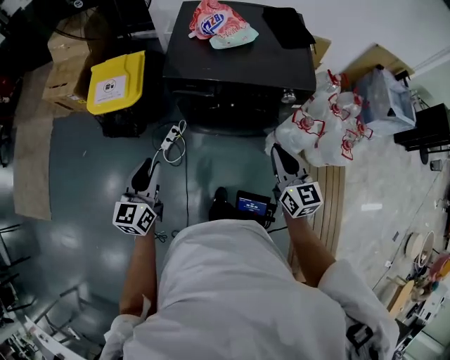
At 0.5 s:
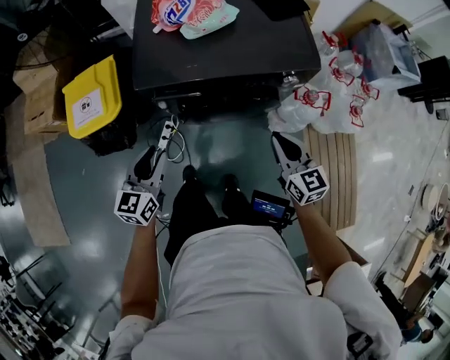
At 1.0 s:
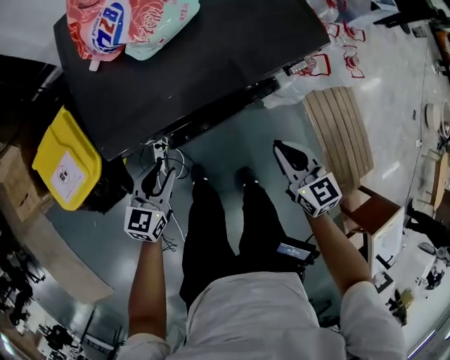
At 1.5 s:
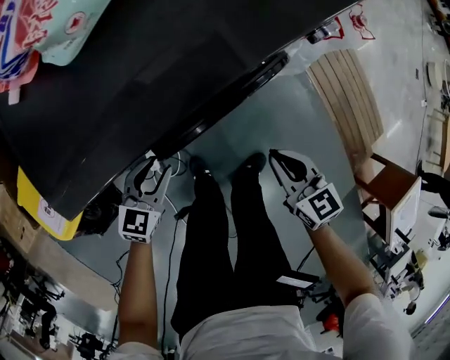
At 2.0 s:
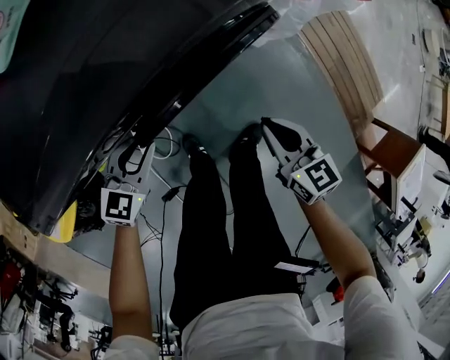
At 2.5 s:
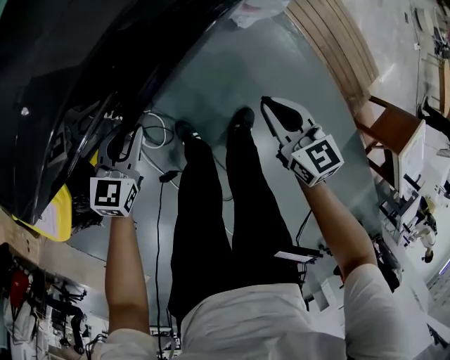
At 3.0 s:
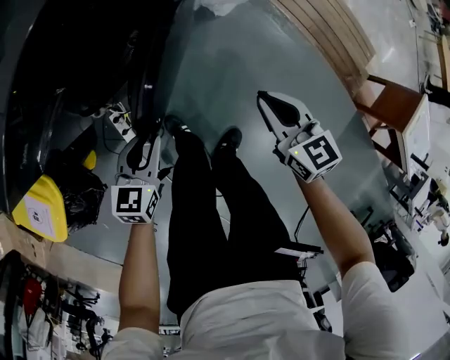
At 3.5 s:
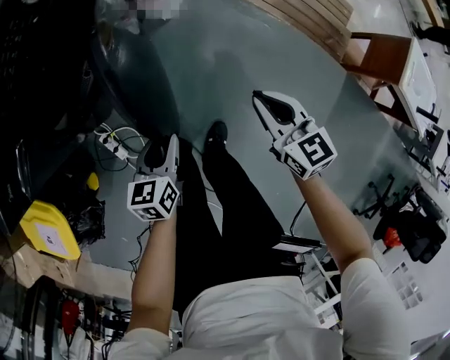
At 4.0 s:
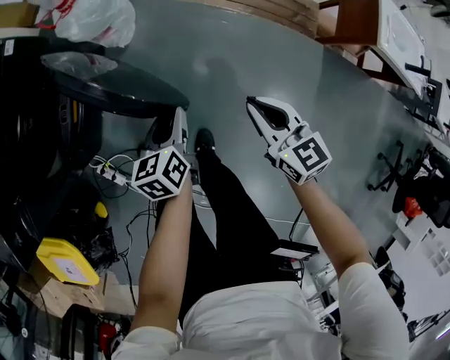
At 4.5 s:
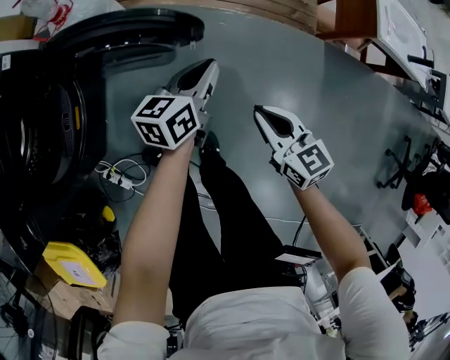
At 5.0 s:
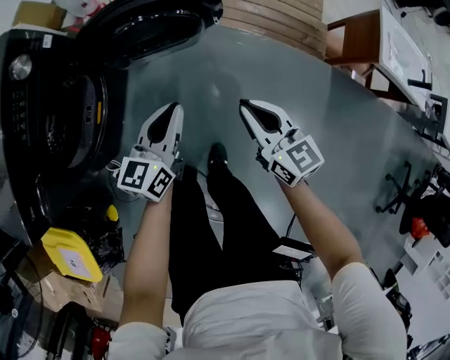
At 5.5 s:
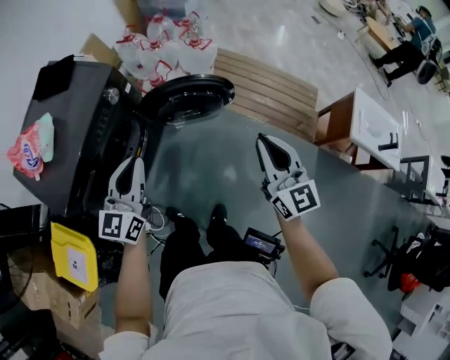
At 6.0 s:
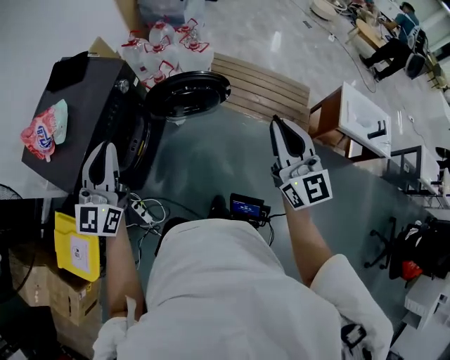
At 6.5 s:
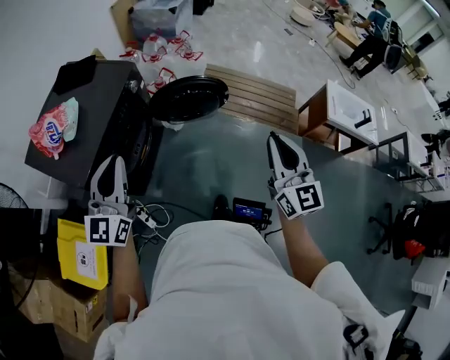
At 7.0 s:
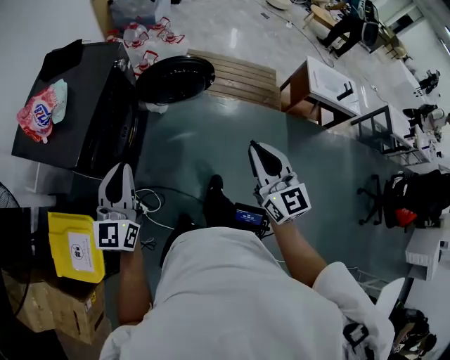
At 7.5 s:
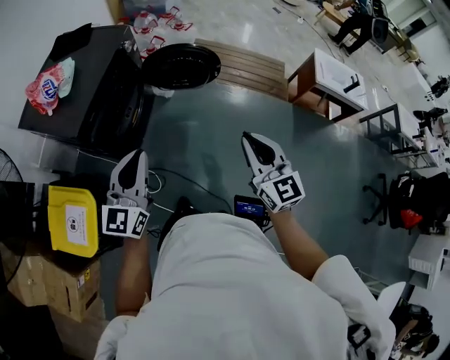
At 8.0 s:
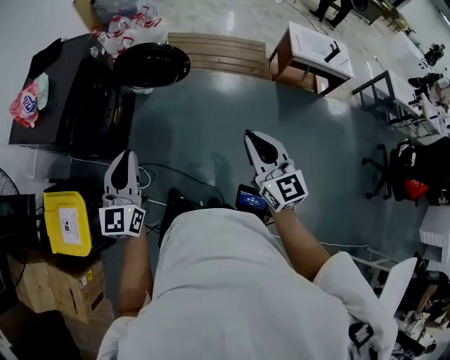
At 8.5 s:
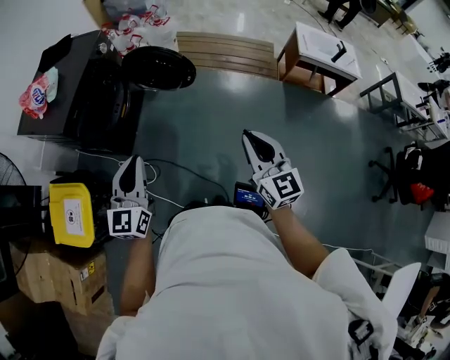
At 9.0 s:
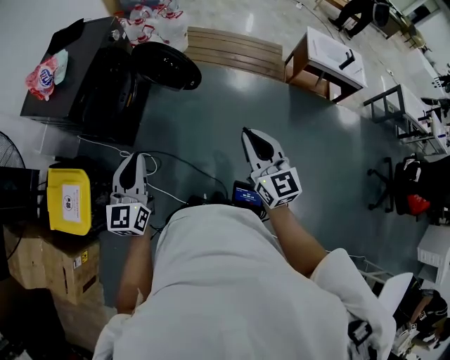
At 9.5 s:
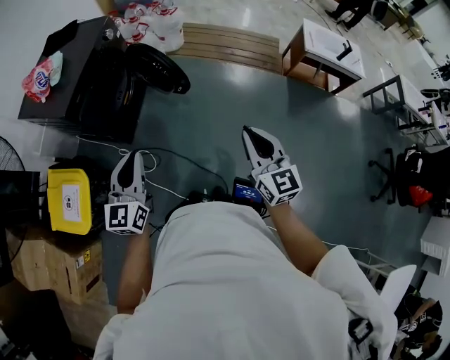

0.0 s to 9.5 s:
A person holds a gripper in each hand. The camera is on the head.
0.0 to 2.0 s: The grippers both shift downward by about 35 cm. The left gripper turns by about 70 degrees. Meanwhile the right gripper rotates roughly 40 degrees.
2.0 to 4.0 s: The pair of grippers is taken about 40 cm. The right gripper turns by about 30 degrees. Meanwhile the left gripper turns by about 30 degrees.
4.0 to 5.5 s: Both grippers travel together upward, roughly 40 cm. The left gripper points its fingers about 30 degrees further upward, and closes up. The right gripper tilts its fingers roughly 30 degrees upward.
5.5 to 7.5 s: The grippers both shift backward by some 40 cm.
7.5 to 9.5 s: Both grippers move backward and to the right, approximately 15 cm.

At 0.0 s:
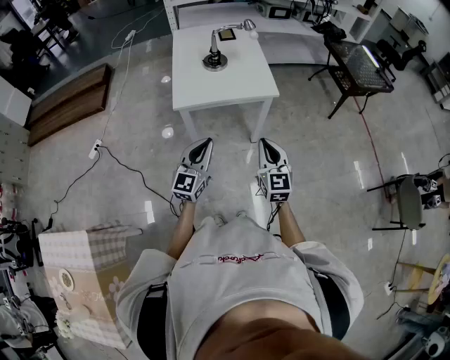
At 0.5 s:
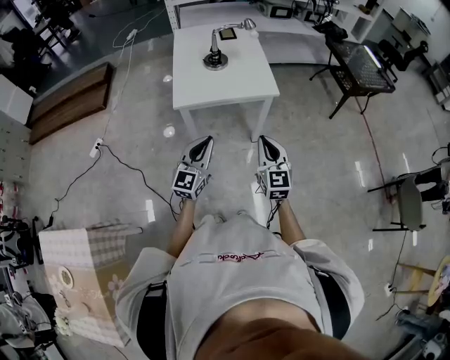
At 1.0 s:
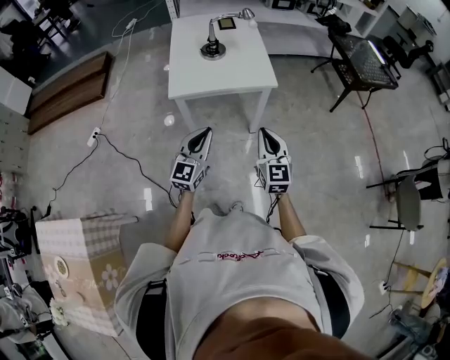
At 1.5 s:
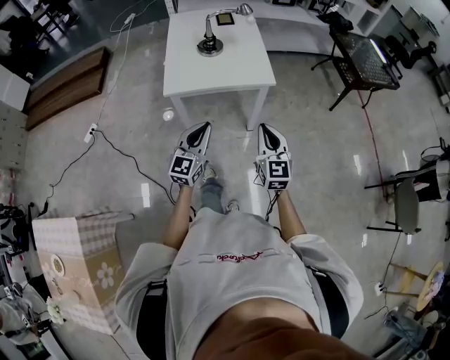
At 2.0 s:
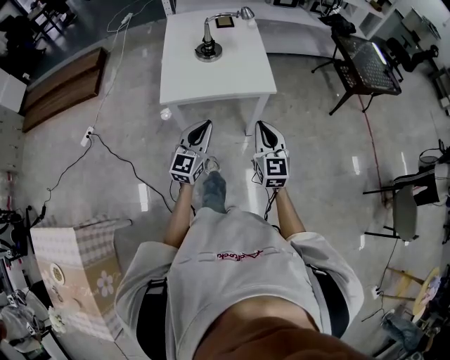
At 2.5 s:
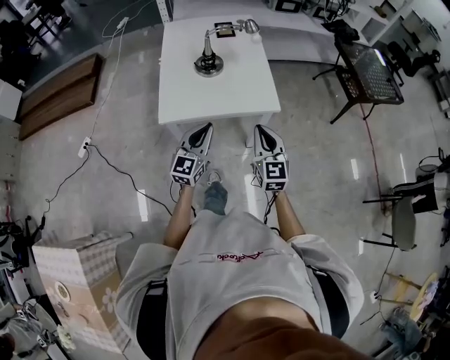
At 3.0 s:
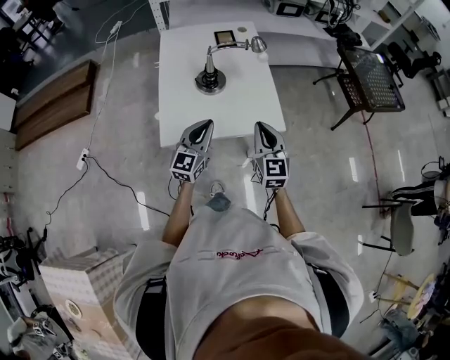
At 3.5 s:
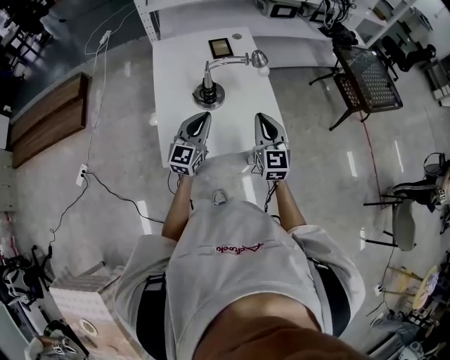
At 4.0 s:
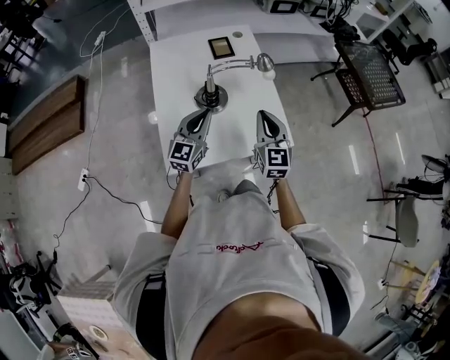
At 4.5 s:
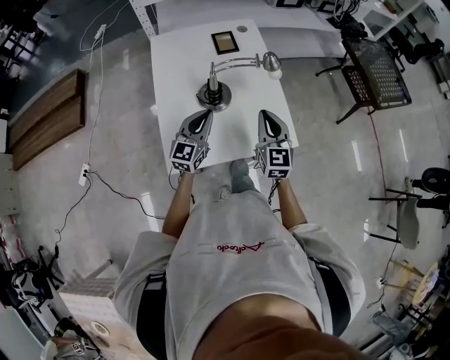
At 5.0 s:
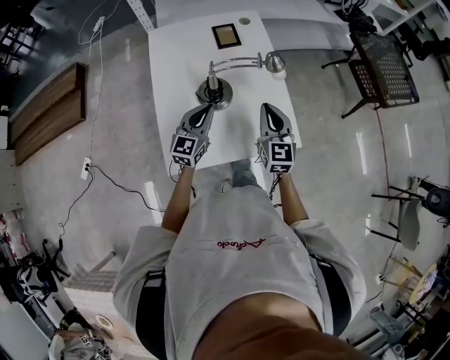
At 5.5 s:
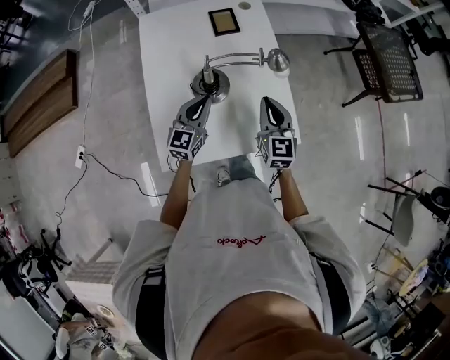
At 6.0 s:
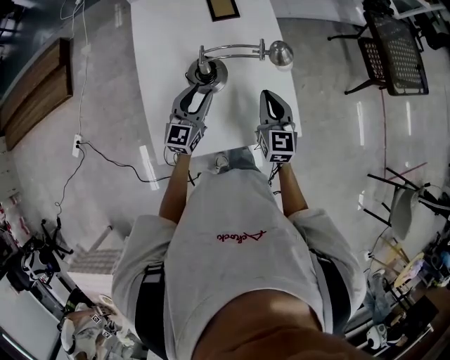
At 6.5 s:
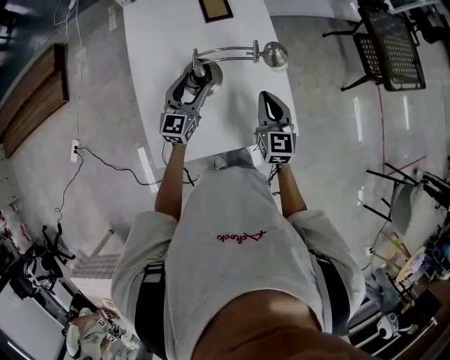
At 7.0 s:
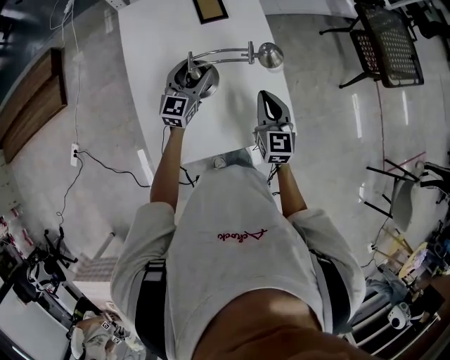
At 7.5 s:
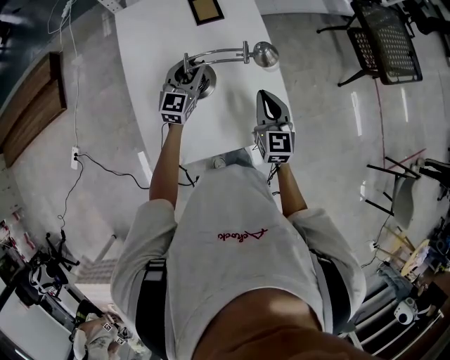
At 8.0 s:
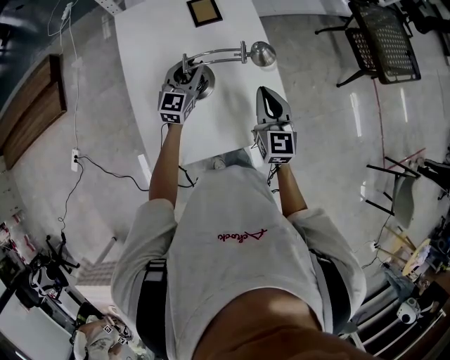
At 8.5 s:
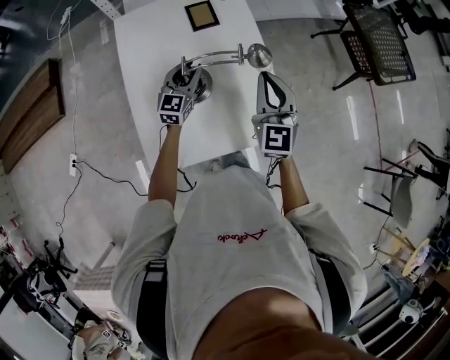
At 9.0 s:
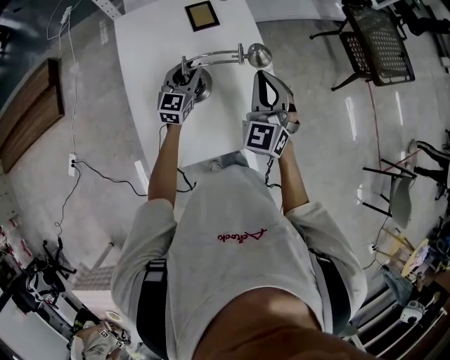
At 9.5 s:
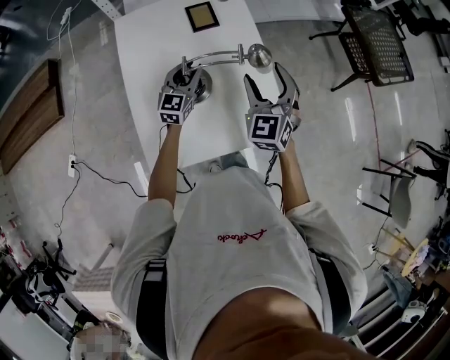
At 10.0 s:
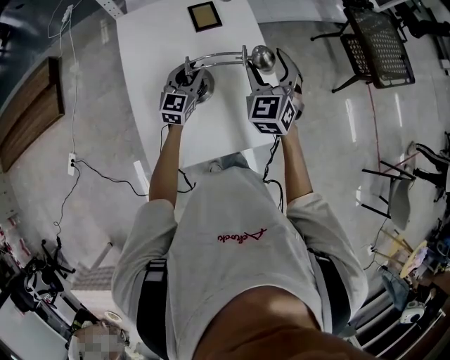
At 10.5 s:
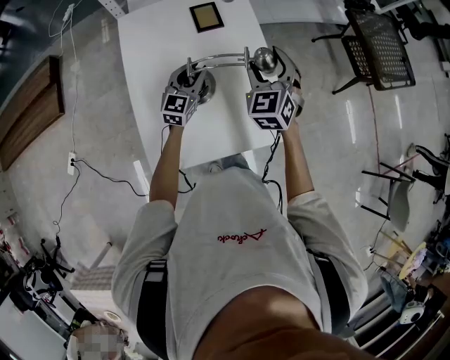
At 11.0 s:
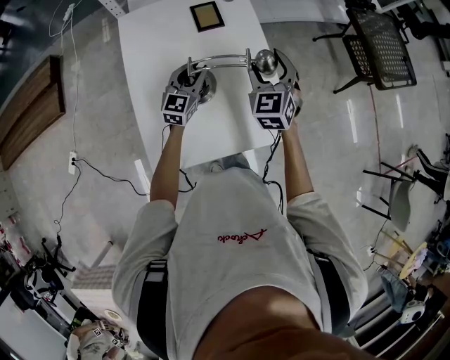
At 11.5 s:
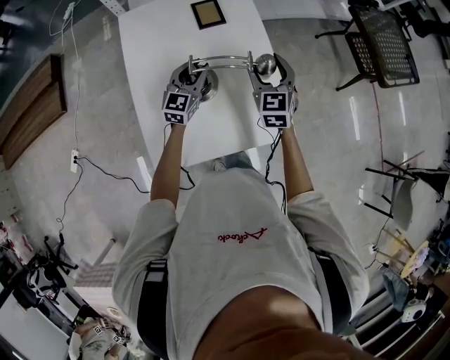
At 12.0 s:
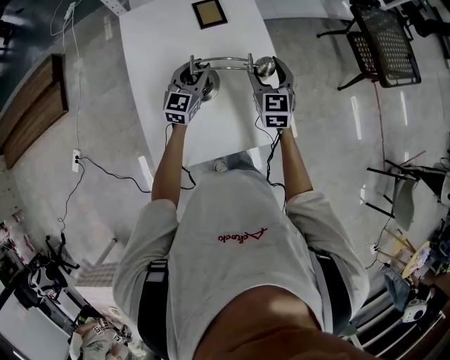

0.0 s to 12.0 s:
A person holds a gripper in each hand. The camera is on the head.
0.0 to 2.0 s: Both grippers travel together forward, roughly 10 cm.
2.0 to 4.0 s: The two grippers go some 30 cm forward.
4.0 to 6.0 s: The two grippers go approximately 10 cm downward and forward. The left gripper opens.
6.0 to 8.0 s: The left gripper is displaced forward by approximately 10 cm, and opens, then closes once more.
8.0 to 10.0 s: The right gripper travels forward and upward by about 10 cm, changes its angle by roughly 30 degrees, and opens up.
10.0 to 12.0 s: The right gripper moves downward, about 10 cm, and turns by approximately 20 degrees.

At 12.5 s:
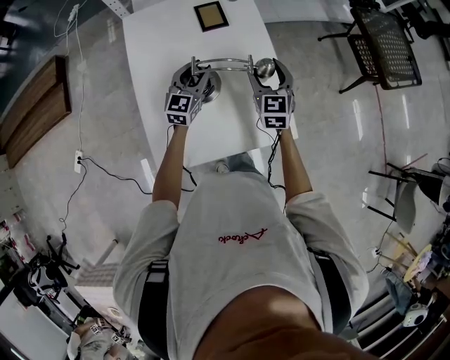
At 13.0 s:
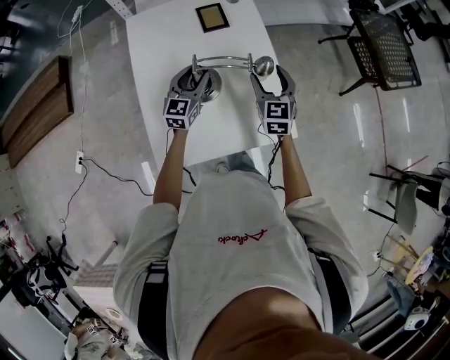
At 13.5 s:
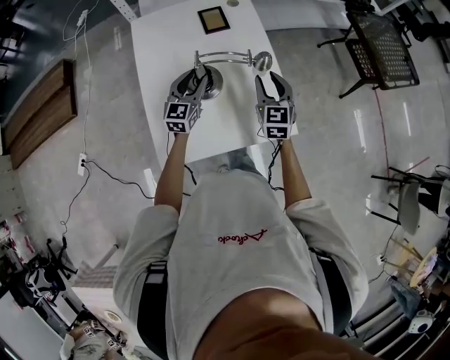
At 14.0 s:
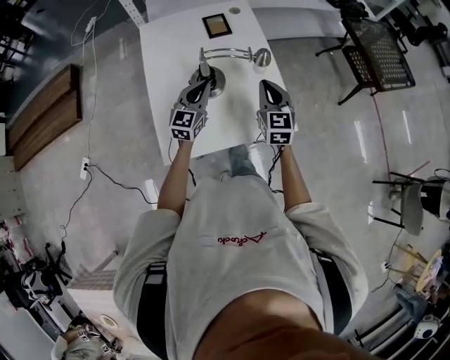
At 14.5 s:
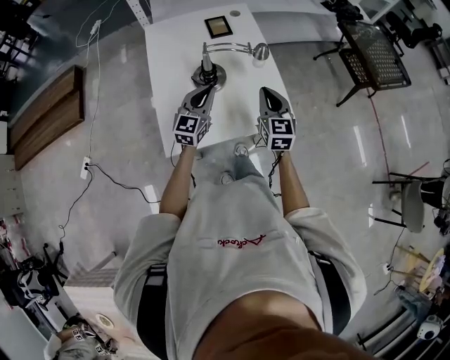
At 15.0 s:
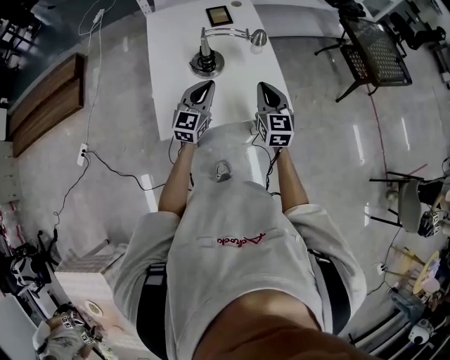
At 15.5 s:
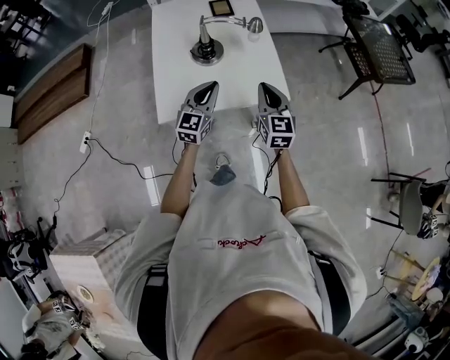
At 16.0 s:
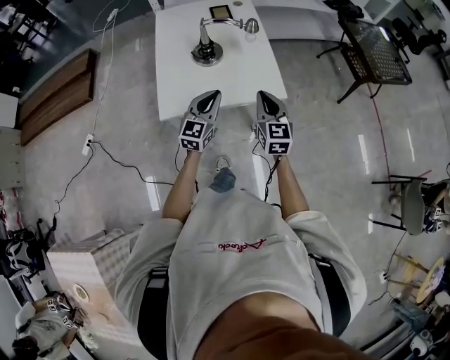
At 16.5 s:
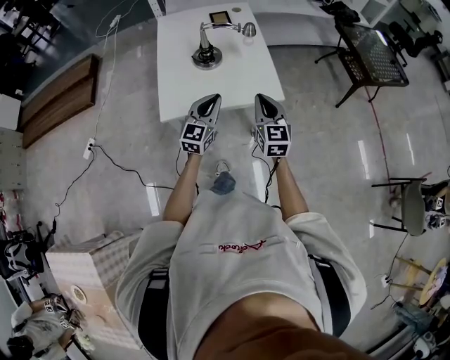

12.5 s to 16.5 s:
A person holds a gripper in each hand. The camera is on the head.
12.5 to 14.5 s: The two grippers go approximately 15 cm backward. The right gripper closes up. The left gripper closes up.
14.5 to 16.5 s: The left gripper heads backward and to the right, covering some 20 cm; the right gripper moves backward, some 15 cm.

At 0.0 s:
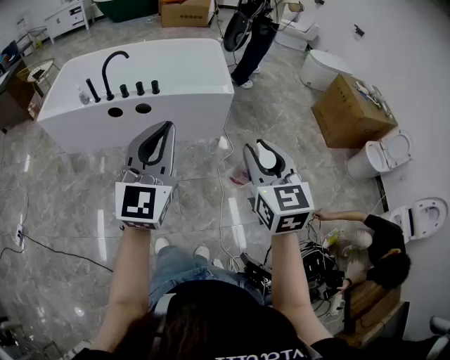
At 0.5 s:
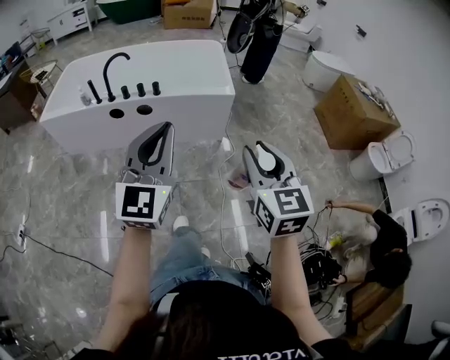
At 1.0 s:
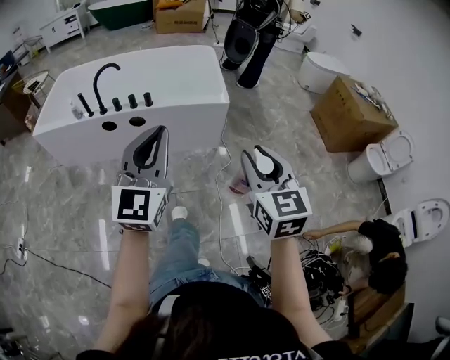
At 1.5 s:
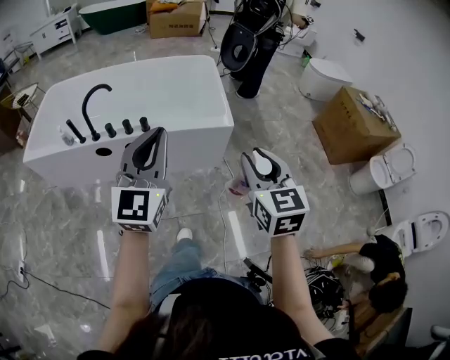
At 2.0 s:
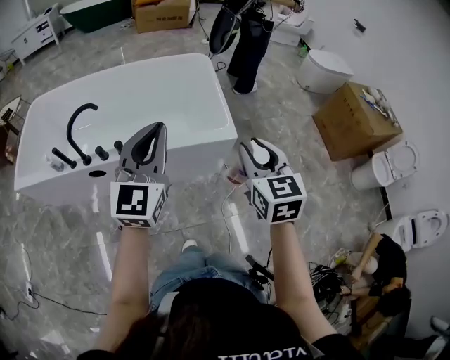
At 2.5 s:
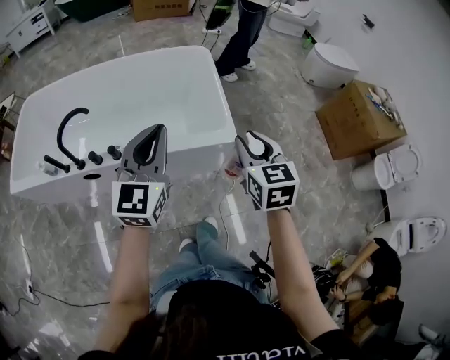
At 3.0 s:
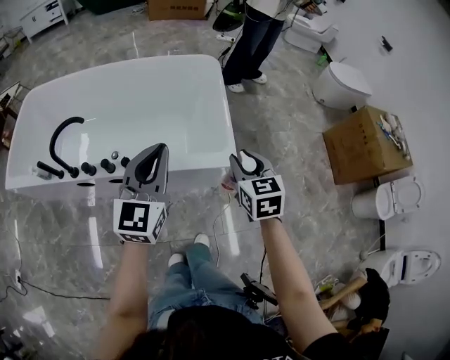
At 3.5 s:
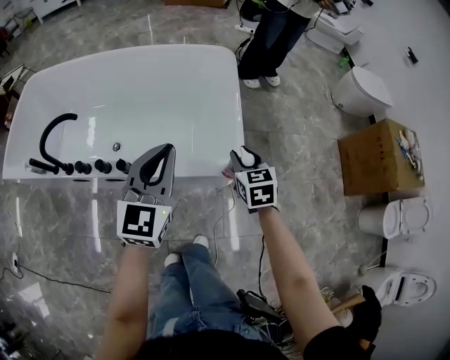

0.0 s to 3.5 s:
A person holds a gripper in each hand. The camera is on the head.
0.0 to 2.0 s: The pair of grippers is taken forward, approximately 40 cm.
2.0 to 3.5 s: The two grippers go about 35 cm forward and downward. The right gripper changes its angle by some 20 degrees.
